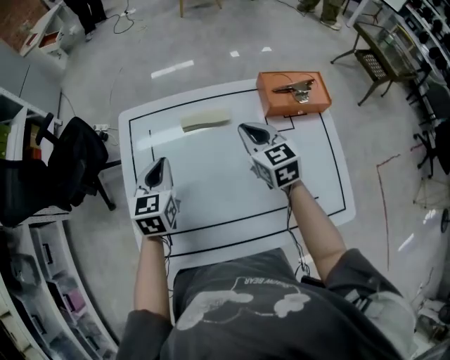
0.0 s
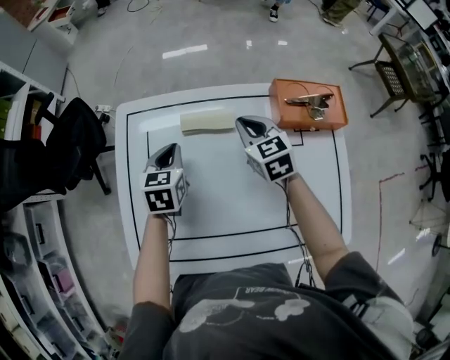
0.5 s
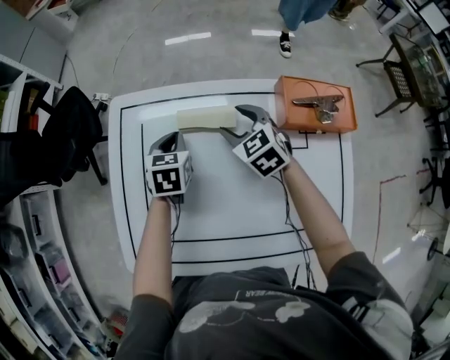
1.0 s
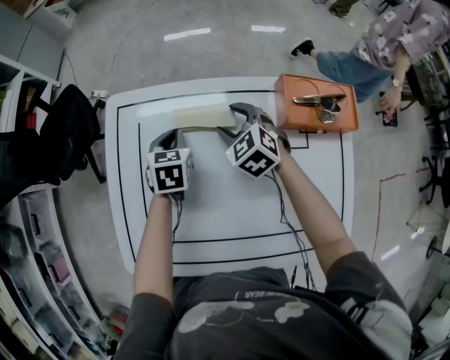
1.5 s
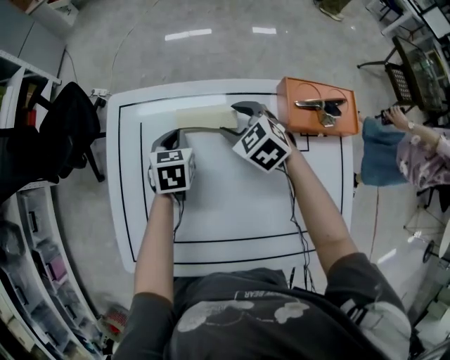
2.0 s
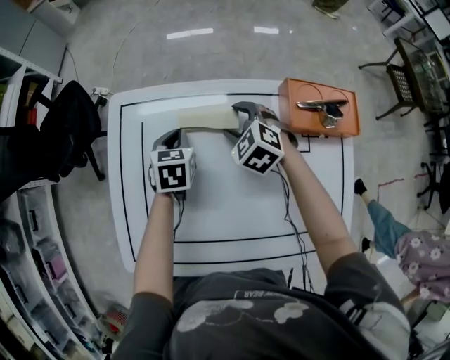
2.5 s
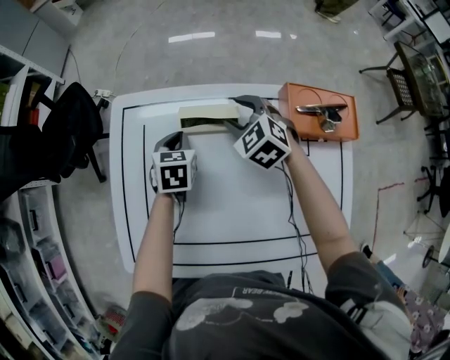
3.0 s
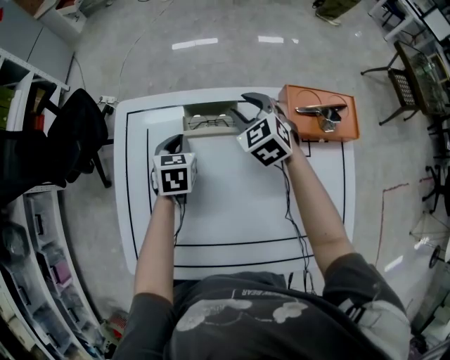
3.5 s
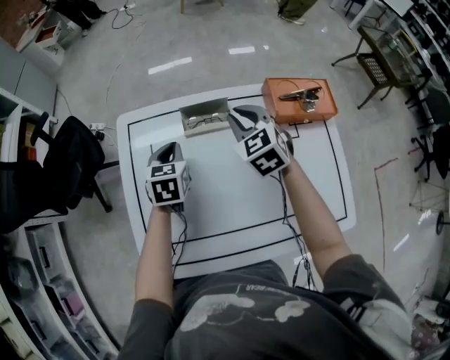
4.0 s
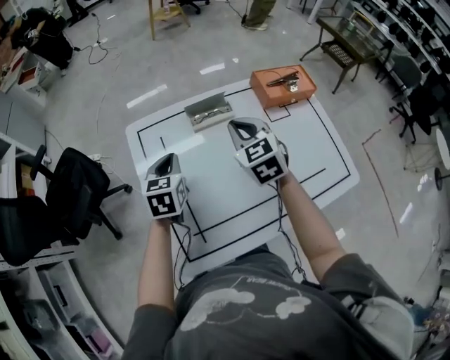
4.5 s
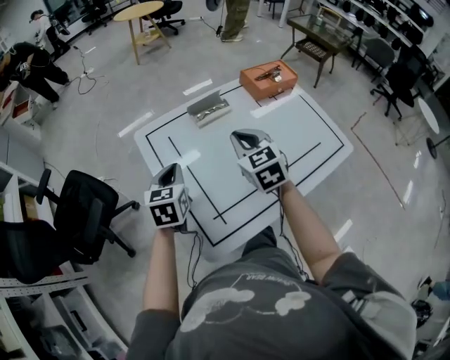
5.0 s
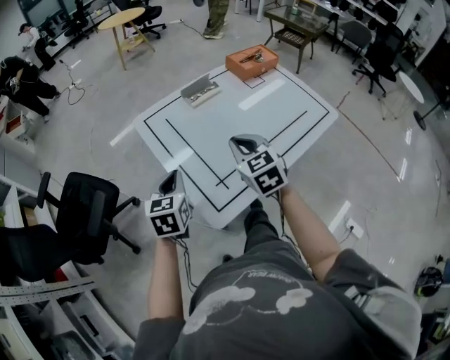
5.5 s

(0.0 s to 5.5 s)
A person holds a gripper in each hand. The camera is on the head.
0.0 s - 2.0 s: The right gripper moves forward and downward, roughly 15 cm, changes its angle by roughly 40 degrees, and opens, while the left gripper is displaced downward, forward and to the right by about 15 cm.
2.0 s - 3.5 s: The right gripper ends up some 5 cm from where it was.
3.5 s - 5.5 s: The right gripper shifts by roughly 40 cm, changes its angle by roughly 40 degrees, and closes. The left gripper changes place by roughly 40 cm, and turns by about 40 degrees.

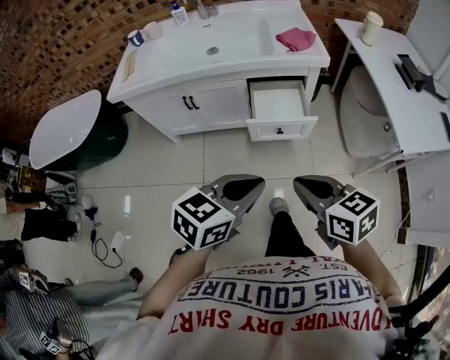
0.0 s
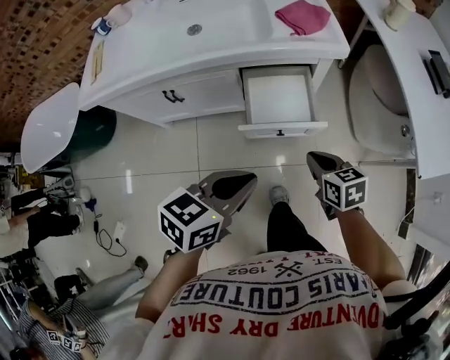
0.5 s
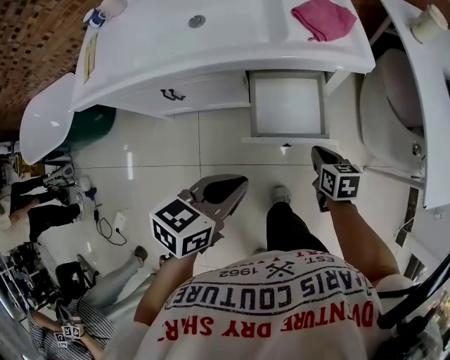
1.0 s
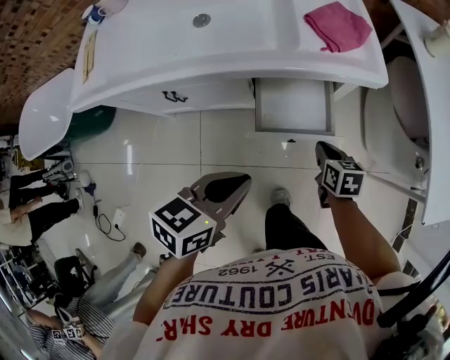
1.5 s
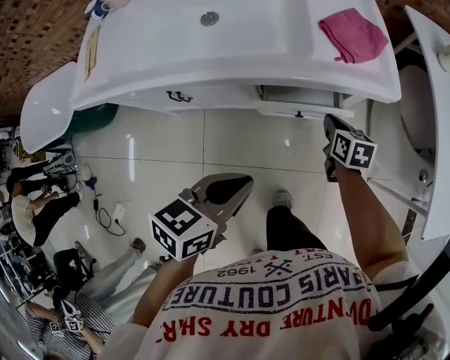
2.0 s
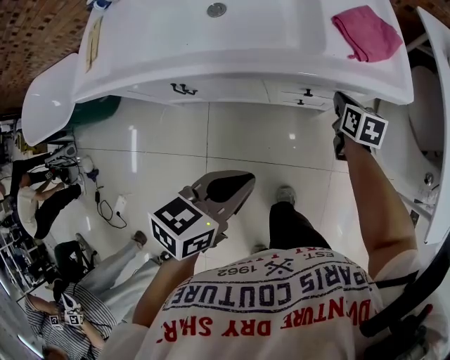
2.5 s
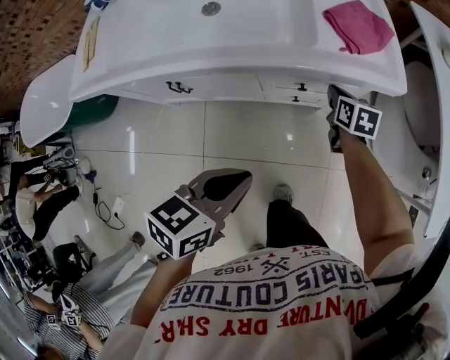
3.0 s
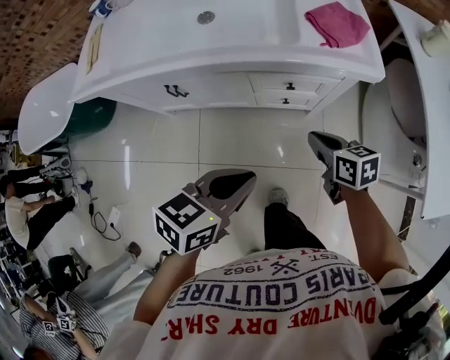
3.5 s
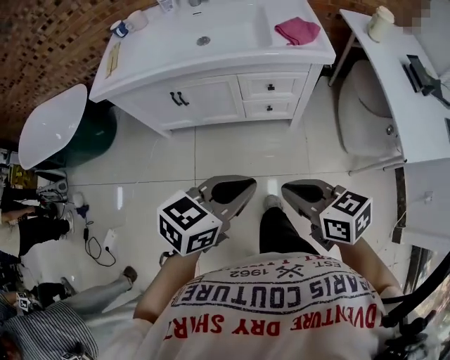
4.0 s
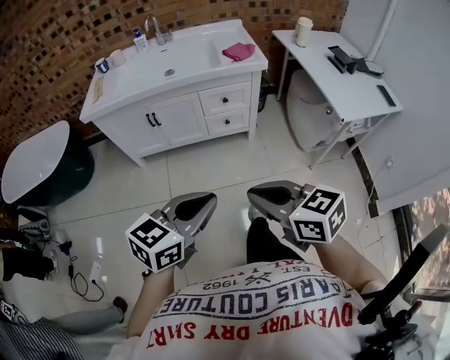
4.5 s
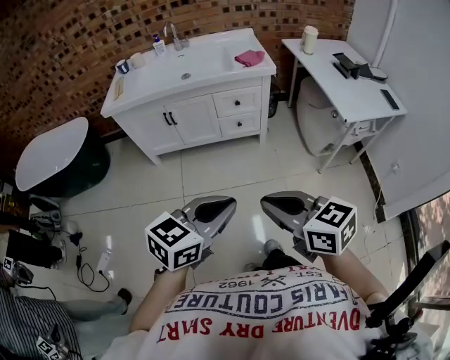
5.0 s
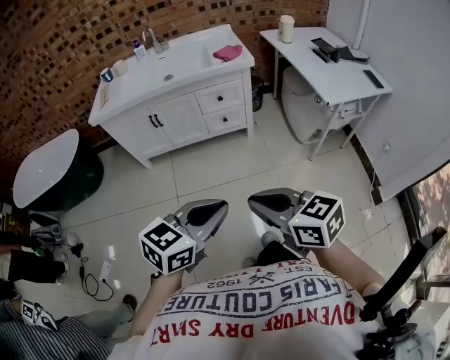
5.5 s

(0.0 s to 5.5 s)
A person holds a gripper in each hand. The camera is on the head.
0.0 s - 2.0 s: The left gripper goes some 30 cm forward, and rotates about 20 degrees, while the right gripper moves forward and downward, some 50 cm, and rotates some 30 degrees.
2.0 s - 3.5 s: The right gripper shifts about 15 cm backward and upward, and rotates about 20 degrees.
3.5 s - 5.5 s: Both grippers are carried backward, approximately 60 cm. The left gripper turns by some 30 degrees. Meanwhile the right gripper goes approximately 25 cm upward, and rotates approximately 30 degrees.

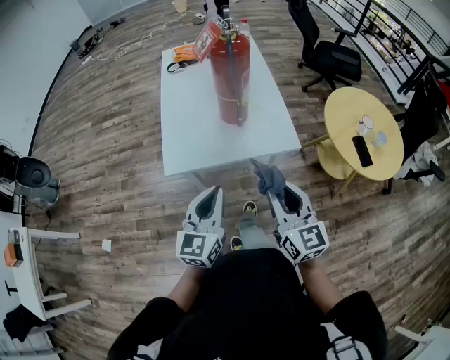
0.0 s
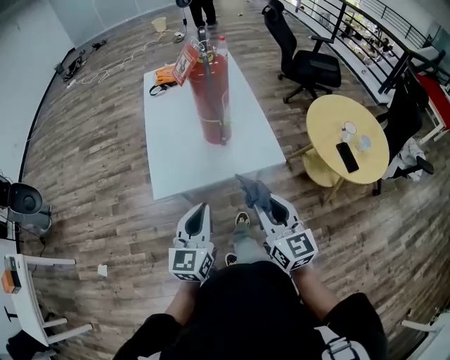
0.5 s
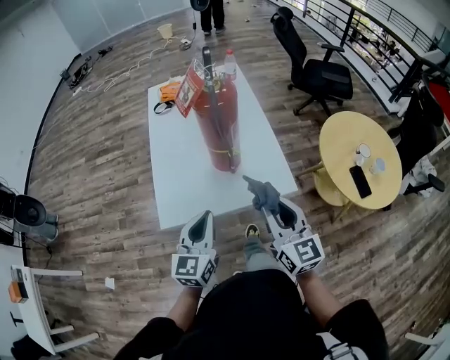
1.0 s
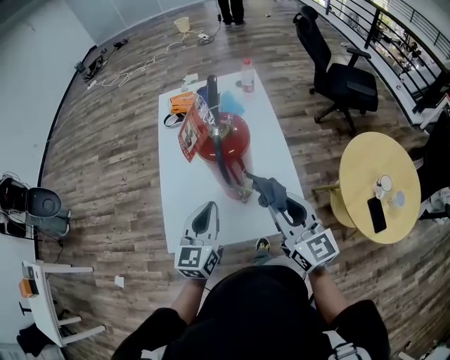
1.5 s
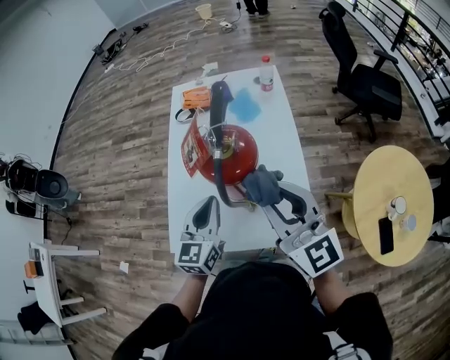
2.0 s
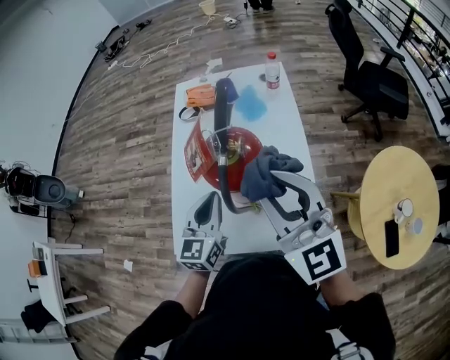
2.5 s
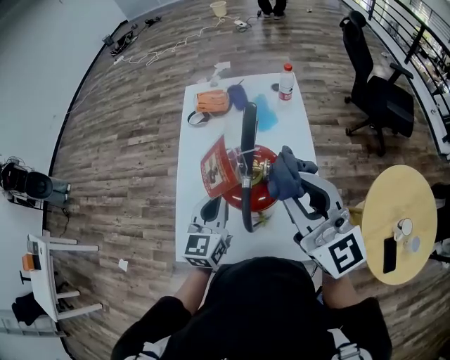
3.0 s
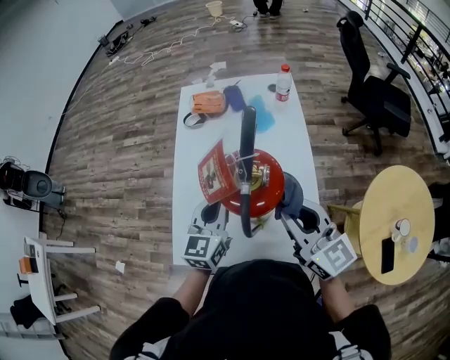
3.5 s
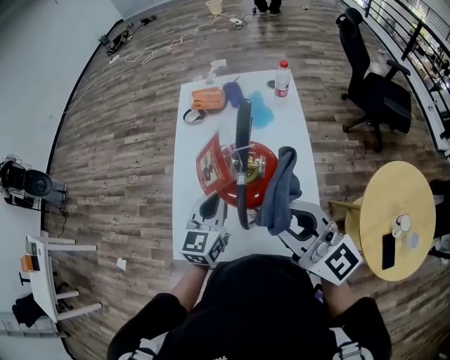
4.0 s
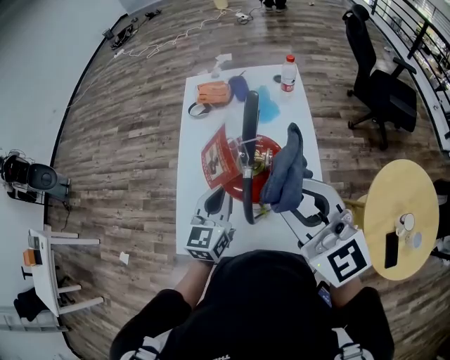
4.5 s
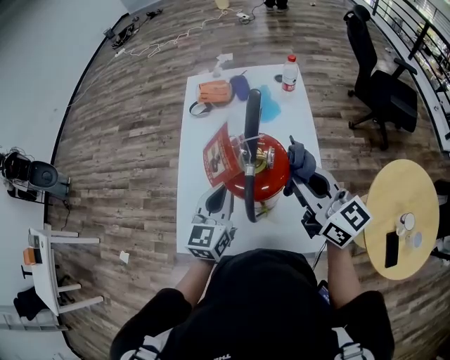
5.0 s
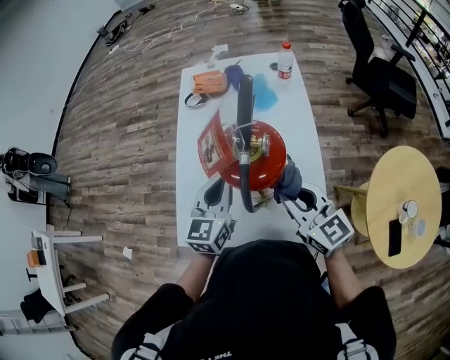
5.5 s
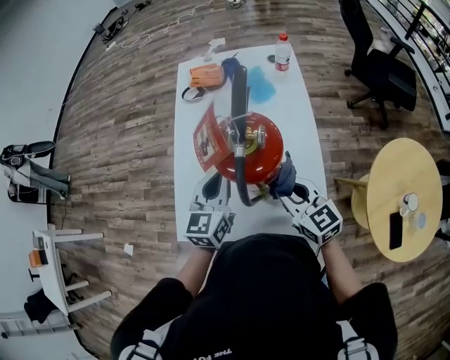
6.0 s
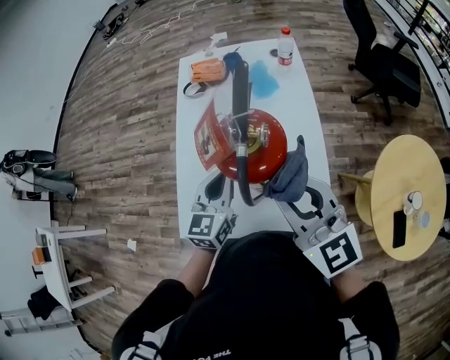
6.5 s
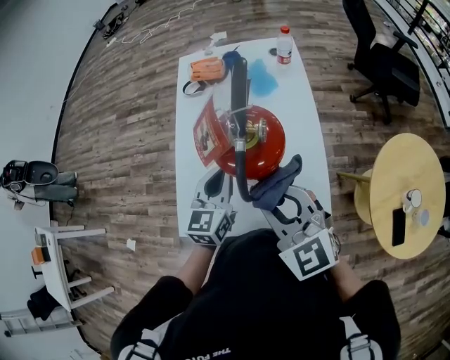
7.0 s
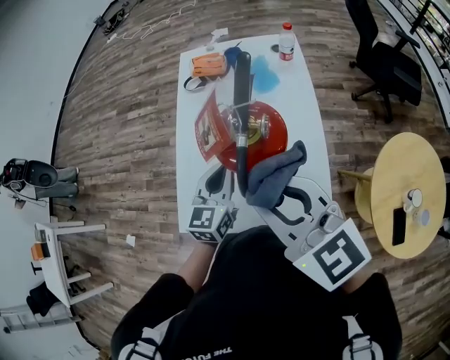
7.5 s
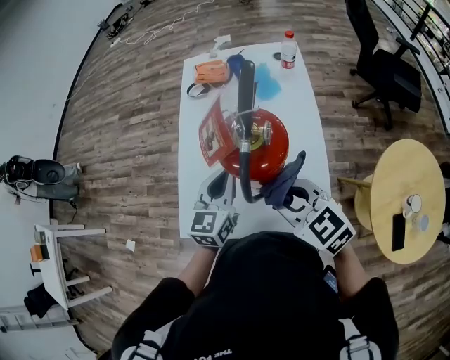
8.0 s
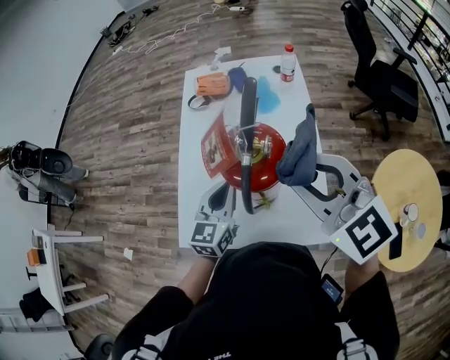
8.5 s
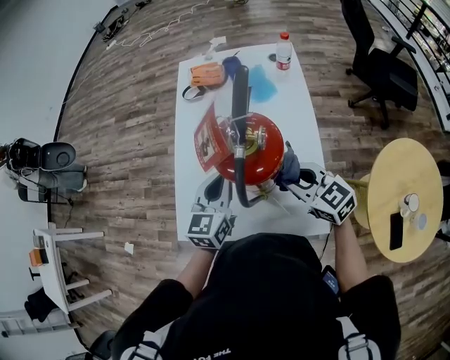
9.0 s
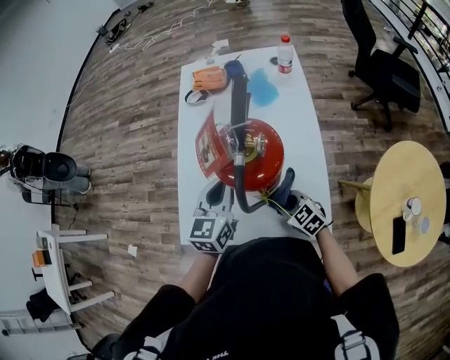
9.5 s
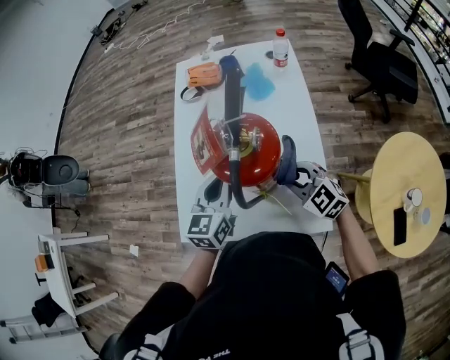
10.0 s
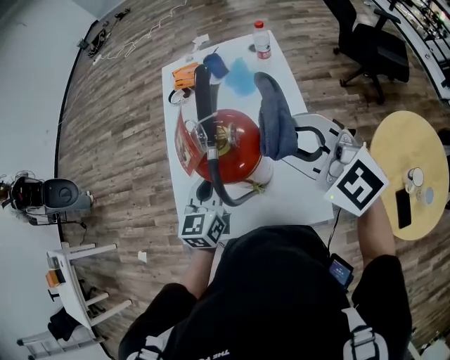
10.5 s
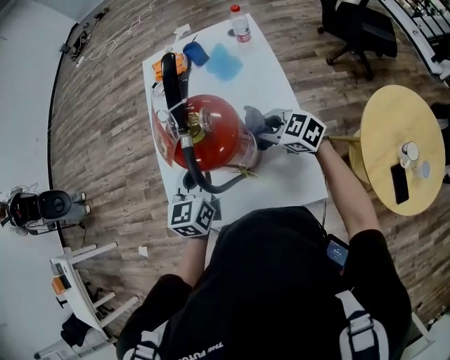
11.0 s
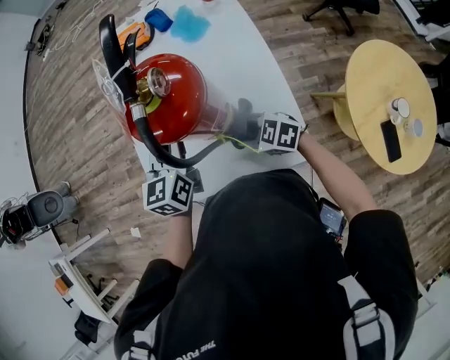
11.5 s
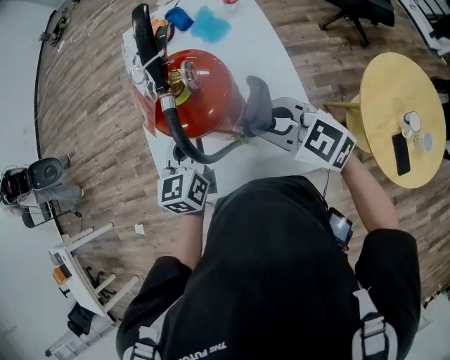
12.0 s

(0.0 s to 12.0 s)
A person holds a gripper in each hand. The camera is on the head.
0.0 s - 2.0 s: The two grippers go some 35 cm forward. The right gripper changes its angle by about 30 degrees.
2.0 s - 4.0 s: The right gripper goes downward and returns, roughly 5 cm each way; the left gripper shifts about 5 cm forward.
4.0 s - 6.0 s: The right gripper heads downward, covering roughly 20 cm, and rotates some 30 degrees.
6.0 s - 8.0 s: The right gripper swings up and down, roughly 20 cm each way, with 3 reversals.
8.0 s - 10.0 s: The right gripper goes up and down, about 40 cm each way, reversing 2 times.
10.0 s - 12.0 s: The right gripper swings up and down, approximately 35 cm each way, with 2 reversals.

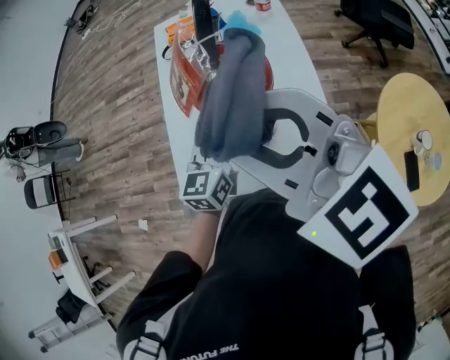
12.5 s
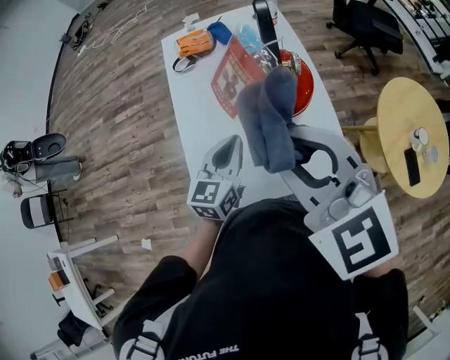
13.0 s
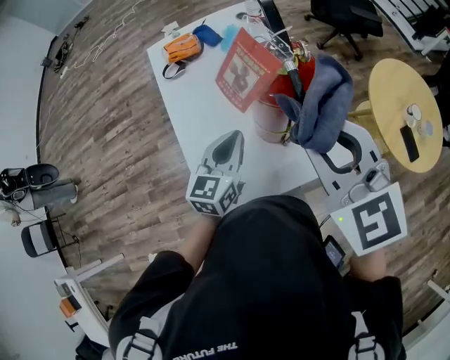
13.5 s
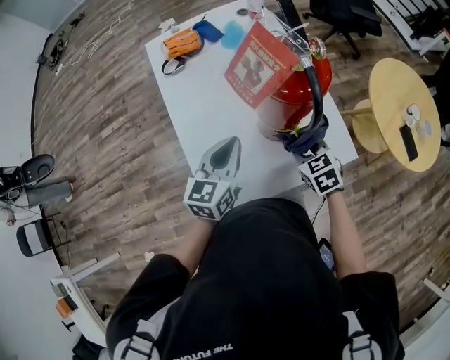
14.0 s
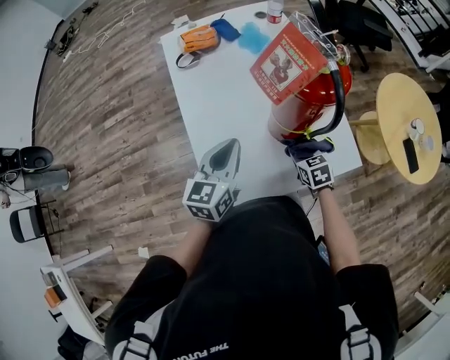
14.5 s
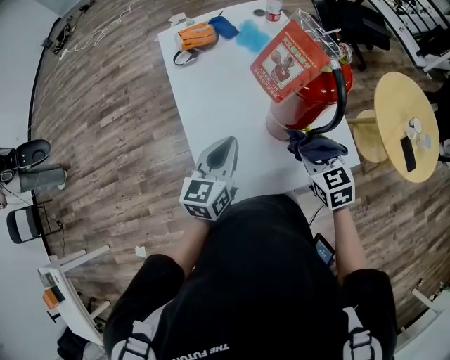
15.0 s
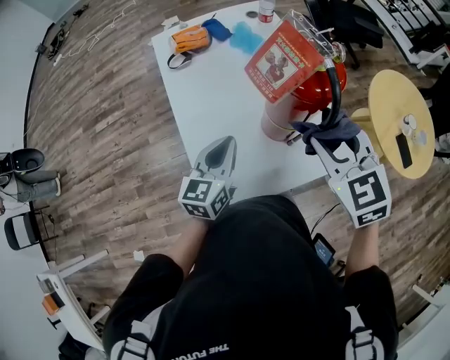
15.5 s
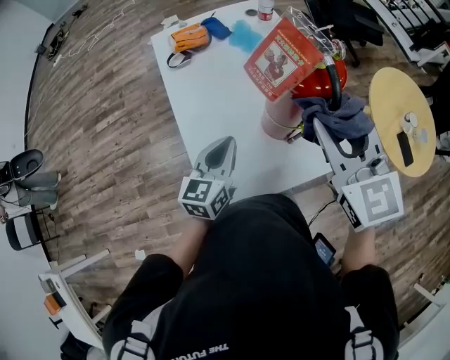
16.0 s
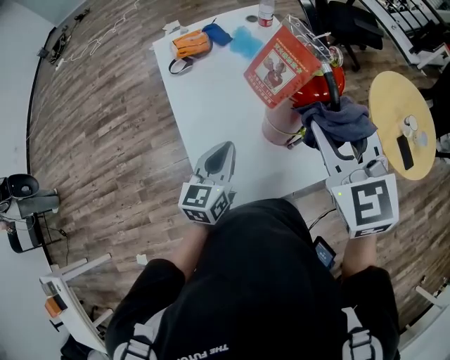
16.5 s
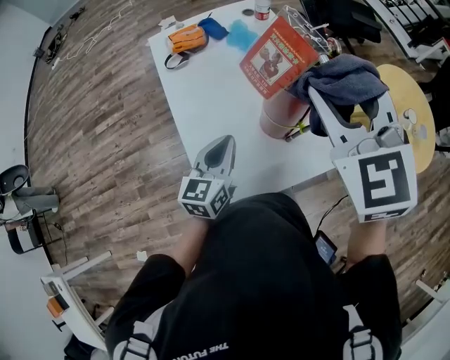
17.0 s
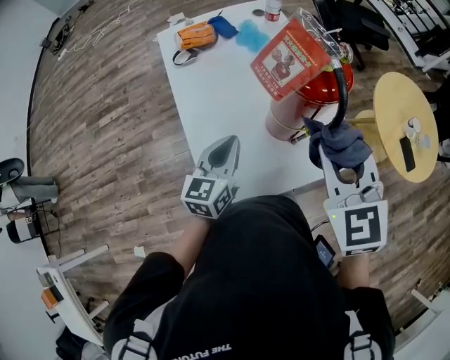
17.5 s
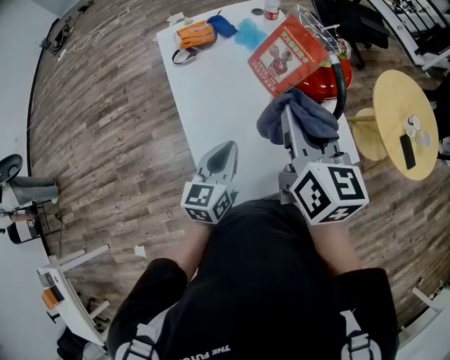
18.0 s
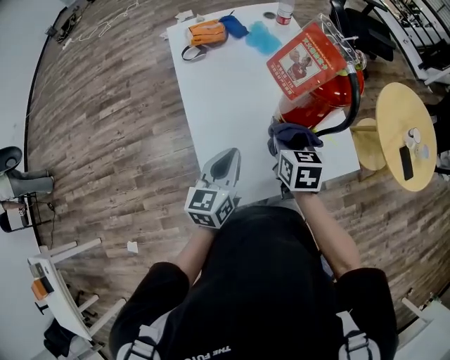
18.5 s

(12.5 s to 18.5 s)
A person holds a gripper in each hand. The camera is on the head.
12.5 s - 14.5 s: The left gripper changes place by about 10 cm. The right gripper is displaced downward by some 40 cm, and tips its fingers downward by roughly 40 degrees.
14.5 s - 16.5 s: The right gripper heads upward, covering about 35 cm, and turns by about 40 degrees.
16.5 s - 18.5 s: The right gripper travels downward by some 25 cm, and swivels some 40 degrees.
